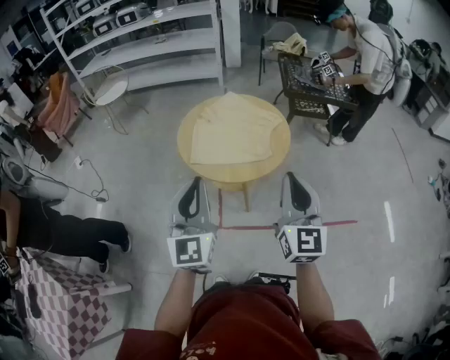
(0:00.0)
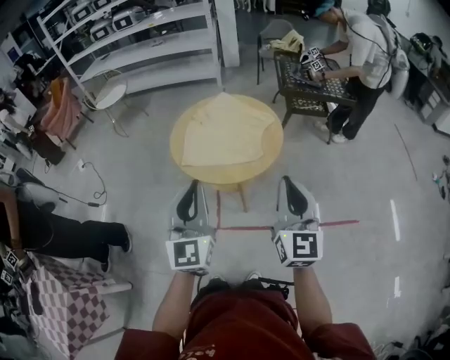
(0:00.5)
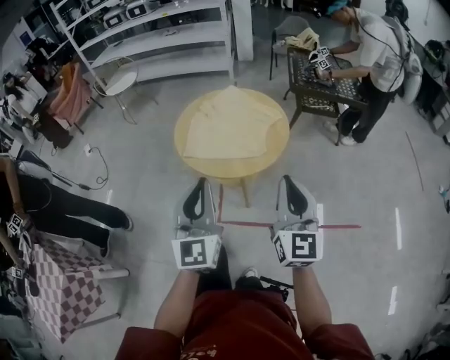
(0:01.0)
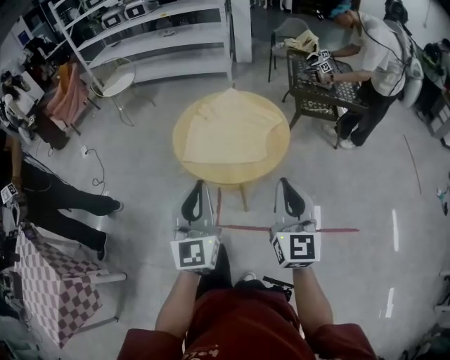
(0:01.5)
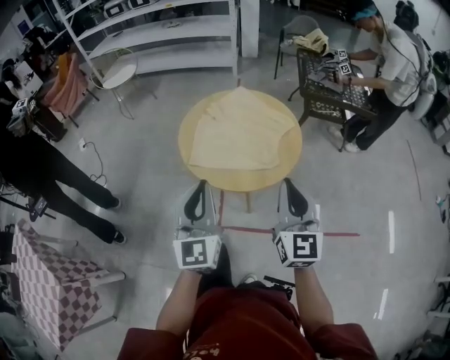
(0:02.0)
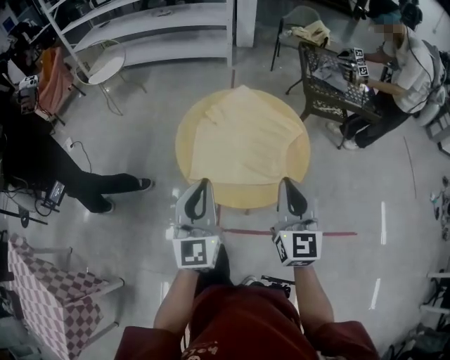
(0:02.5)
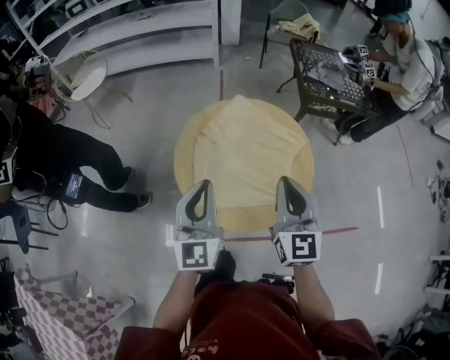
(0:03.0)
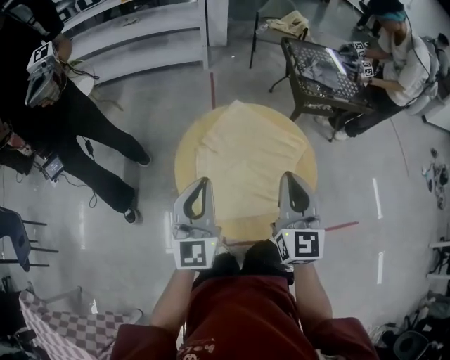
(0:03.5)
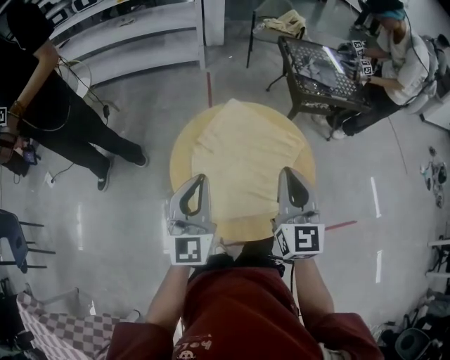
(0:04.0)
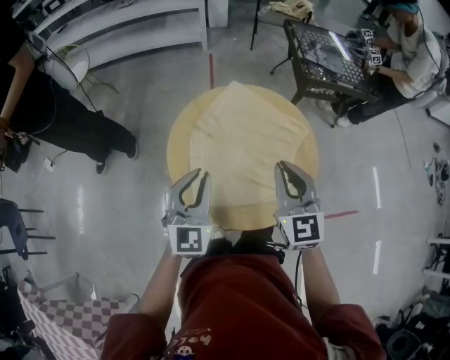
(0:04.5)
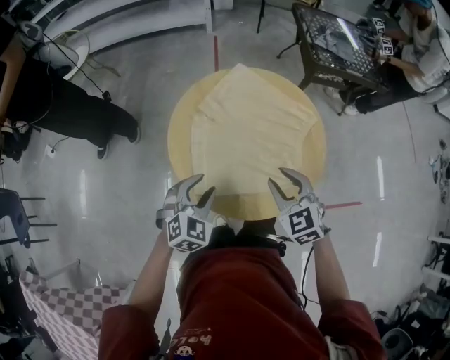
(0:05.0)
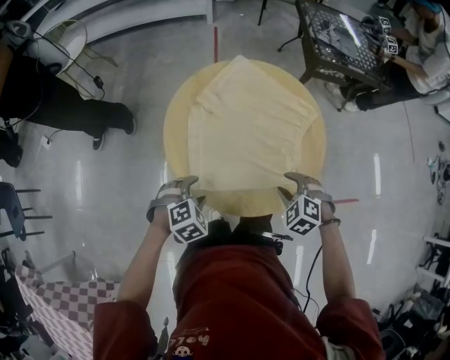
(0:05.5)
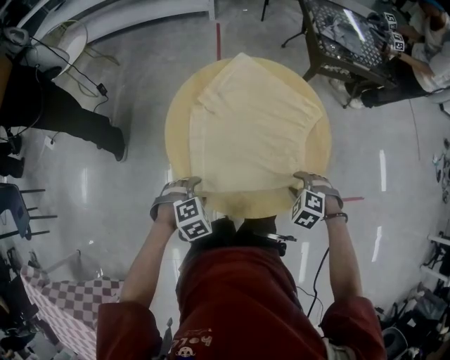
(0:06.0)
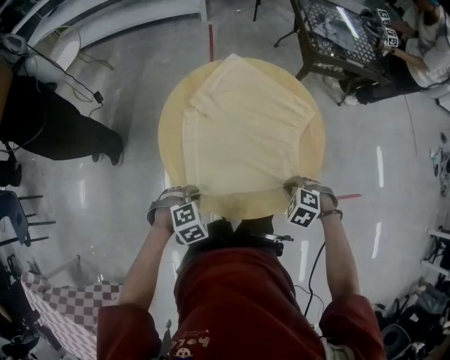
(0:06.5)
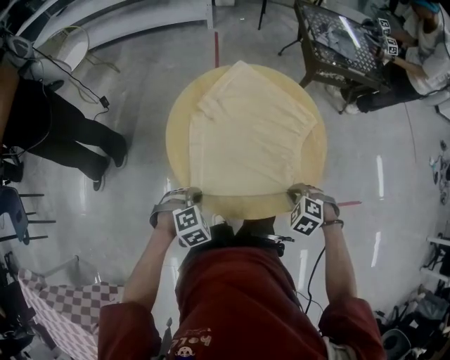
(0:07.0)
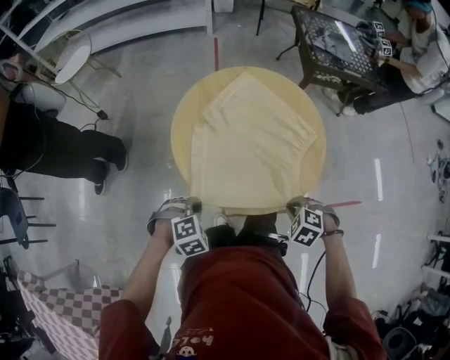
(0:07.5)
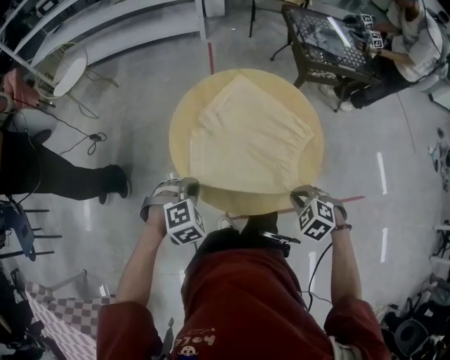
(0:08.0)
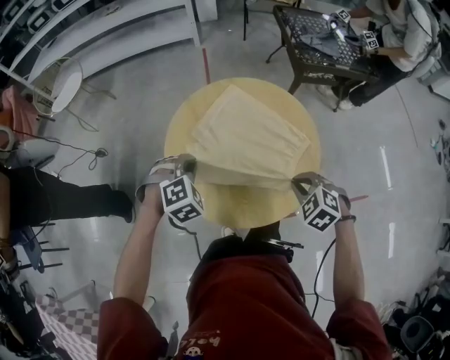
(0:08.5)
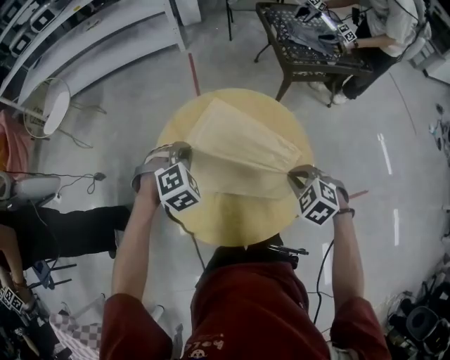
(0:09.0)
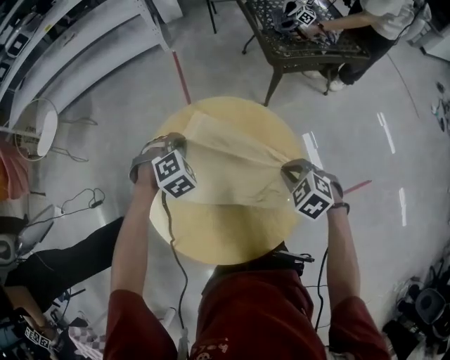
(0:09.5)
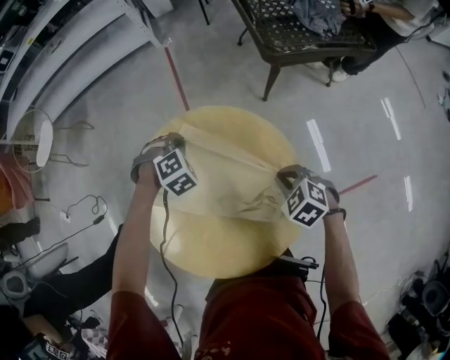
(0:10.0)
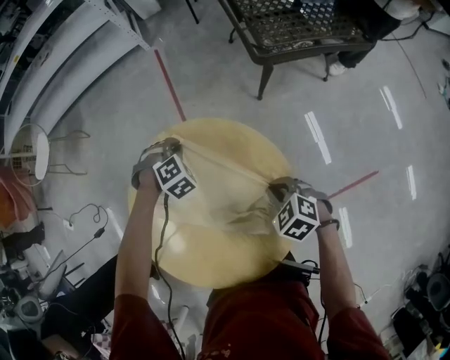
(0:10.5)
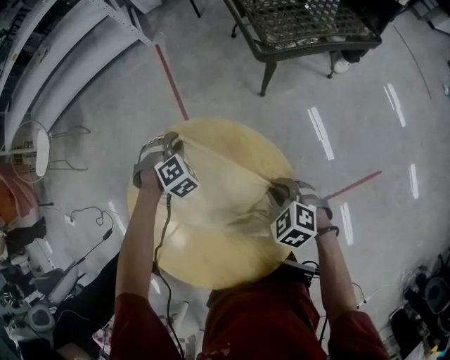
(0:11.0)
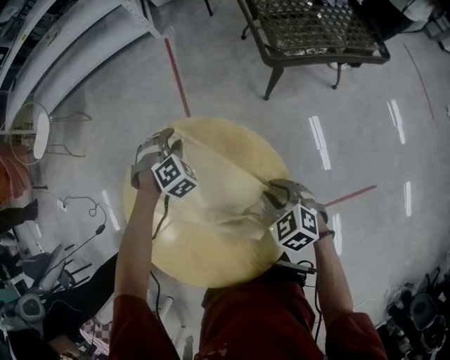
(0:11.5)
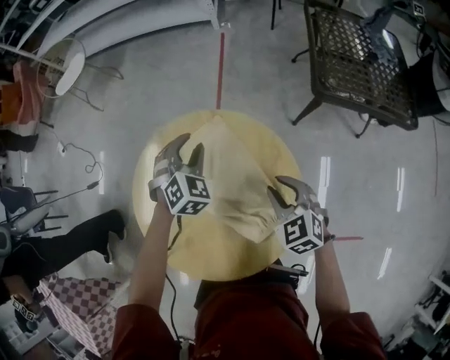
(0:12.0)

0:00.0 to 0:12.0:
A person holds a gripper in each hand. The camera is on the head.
0:00.0 to 0:02.0: Both grippers travel together forward, some 10 cm.
0:02.0 to 0:04.0: The left gripper moves forward, about 25 cm. Meanwhile the right gripper heads forward and to the left, covering about 25 cm.
0:04.0 to 0:06.0: The two grippers go approximately 30 cm downward. The right gripper angles its fingers downward, by roughly 70 degrees, and opens up. Meanwhile the left gripper angles its fingers downward, by some 80 degrees, and opens up.
0:06.0 to 0:08.0: Both grippers move upward, approximately 10 cm. The left gripper closes. The right gripper closes up.
0:08.0 to 0:10.0: The left gripper goes approximately 40 cm forward and to the right. The right gripper travels forward and to the right by roughly 30 cm.
0:10.0 to 0:12.0: The left gripper goes roughly 5 cm upward, changes its angle by approximately 50 degrees, and opens its fingers. Meanwhile the right gripper goes about 5 cm forward, rotates roughly 20 degrees, and opens up.

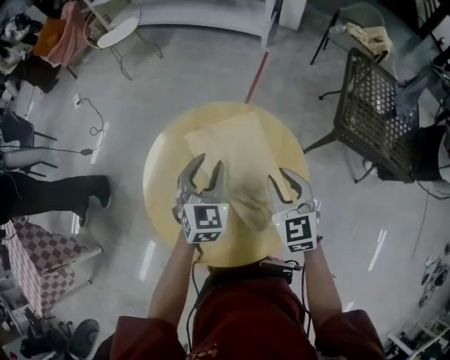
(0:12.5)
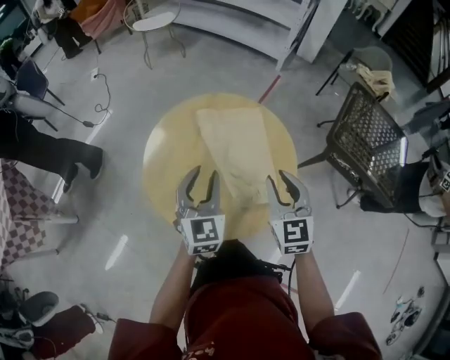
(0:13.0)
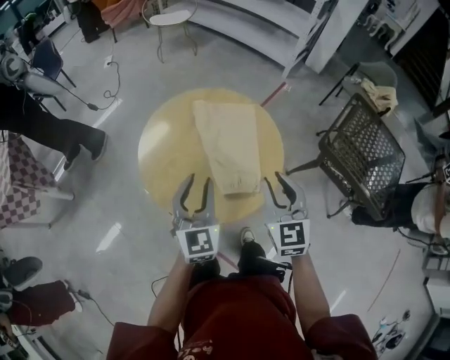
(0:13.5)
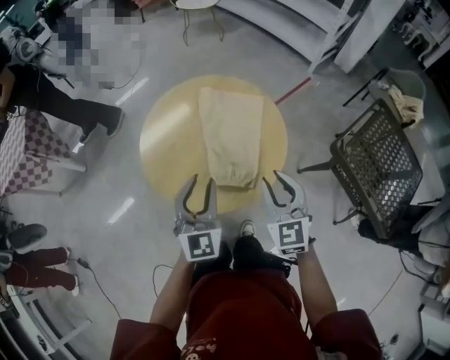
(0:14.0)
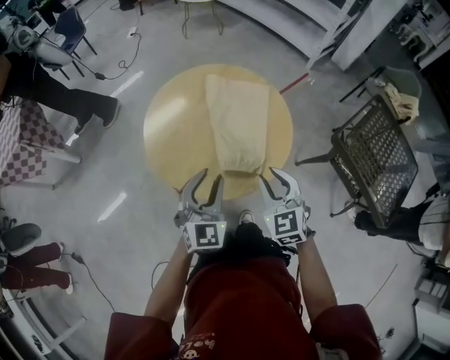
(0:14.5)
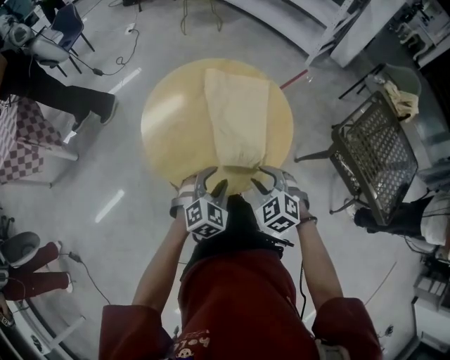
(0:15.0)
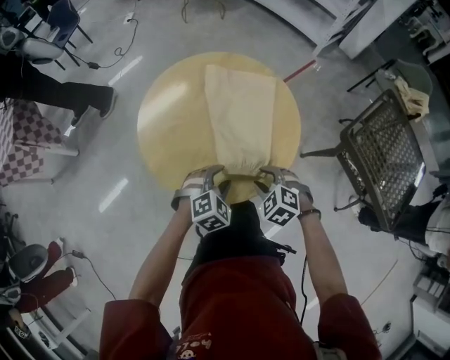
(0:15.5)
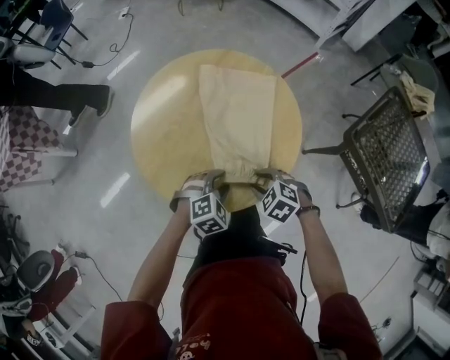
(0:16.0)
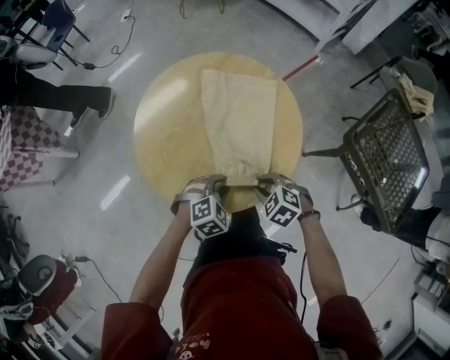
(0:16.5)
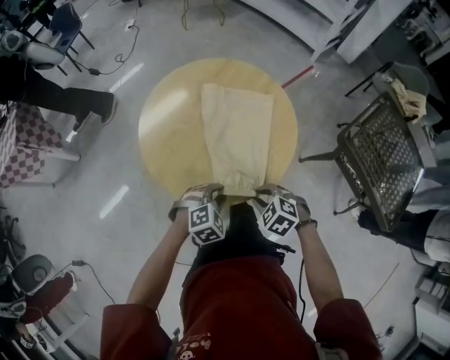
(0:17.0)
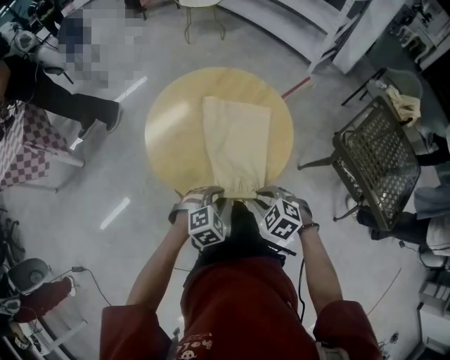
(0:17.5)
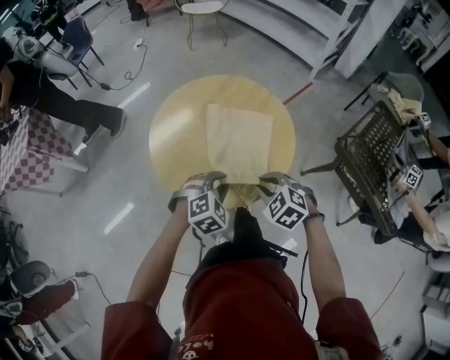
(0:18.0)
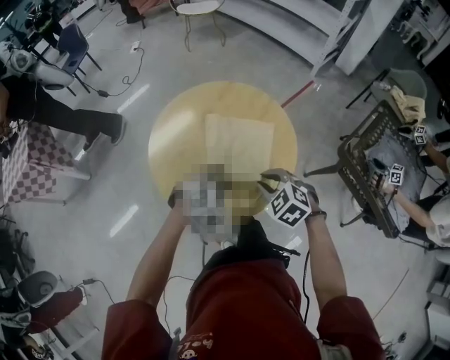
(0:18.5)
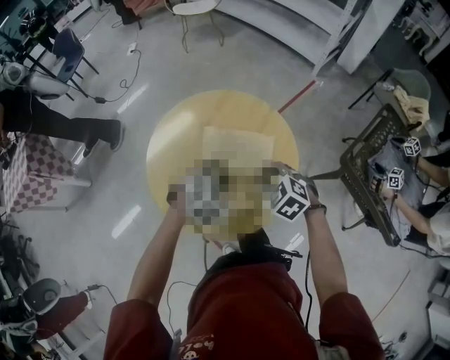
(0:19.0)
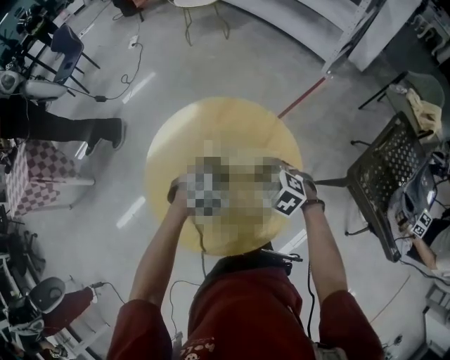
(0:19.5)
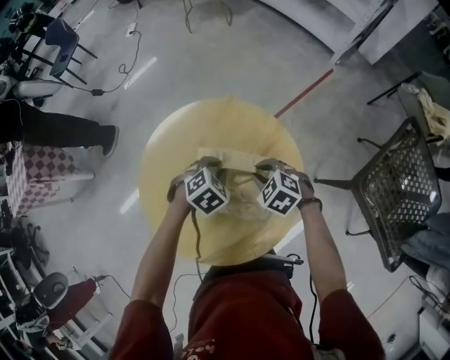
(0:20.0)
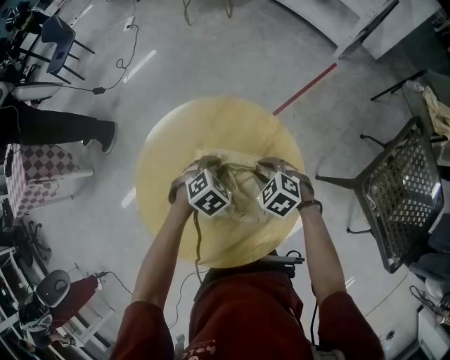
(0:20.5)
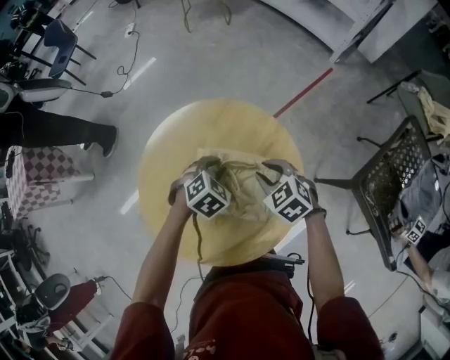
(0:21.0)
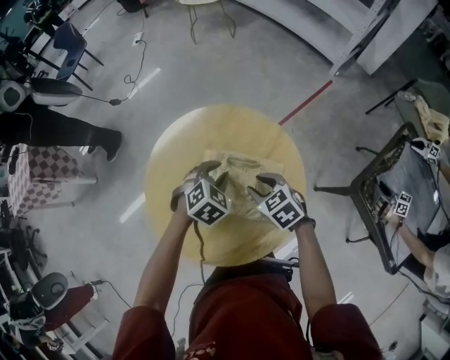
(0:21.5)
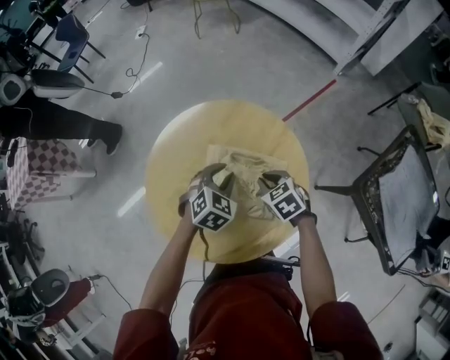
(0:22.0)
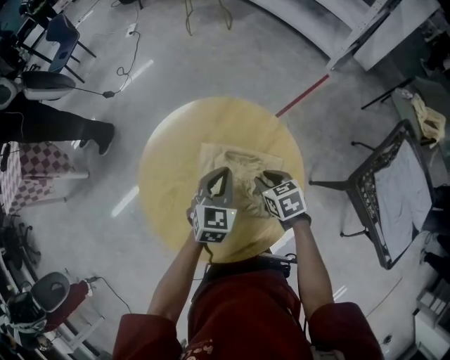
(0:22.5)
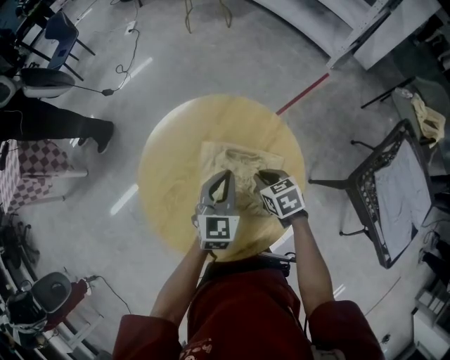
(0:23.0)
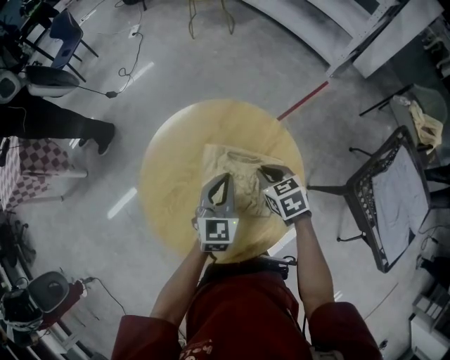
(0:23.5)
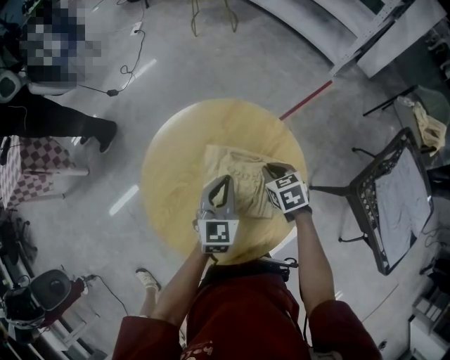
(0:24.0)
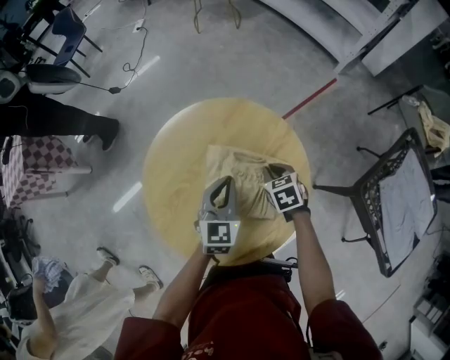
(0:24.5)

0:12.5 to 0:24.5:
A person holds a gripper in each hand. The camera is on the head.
0:12.5 to 0:14.5: The left gripper reaches about 10 cm upward, then returns, and swivels roughly 30 degrees; the right gripper moves roughly 10 cm upward and comes back, and swivels some 30 degrees.
0:14.5 to 0:16.5: The two grippers go some 15 cm downward. The left gripper tips its fingers downward by some 40 degrees. Meanwhile the right gripper points its fingers some 40 degrees further downward.
0:16.5 to 0:18.5: Both grippers travel together upward, approximately 10 cm. The right gripper moves roughly 10 cm backward and comes back.
0:18.5 to 0:20.5: The two grippers go roughly 25 cm forward and downward. The left gripper rotates approximately 20 degrees.
0:20.5 to 0:22.5: The right gripper swivels approximately 40 degrees, while the left gripper travels upward by roughly 10 cm, angles its fingers upward, by roughly 40 degrees, and closes.
0:22.5 to 0:24.5: The grippers move only a little.

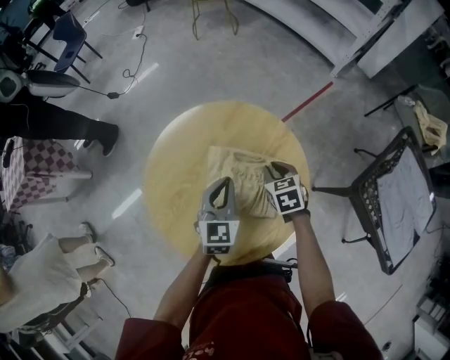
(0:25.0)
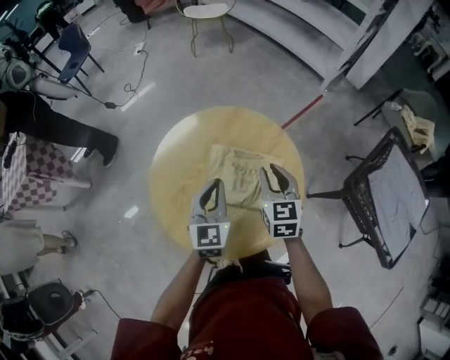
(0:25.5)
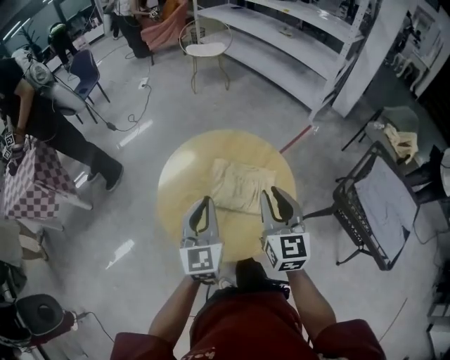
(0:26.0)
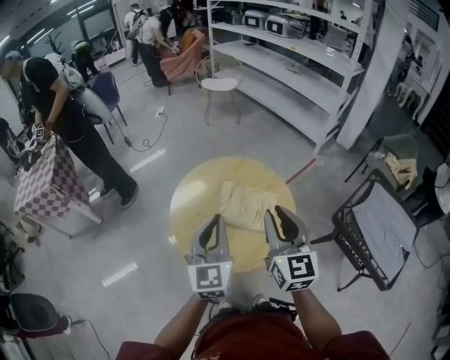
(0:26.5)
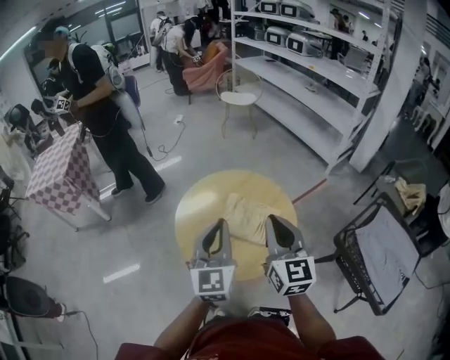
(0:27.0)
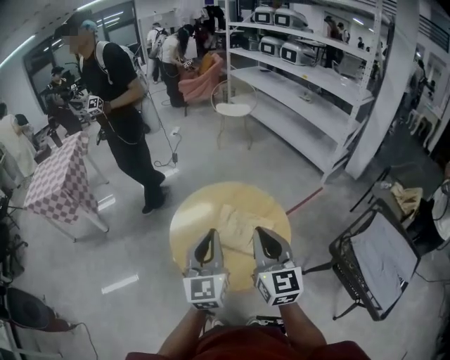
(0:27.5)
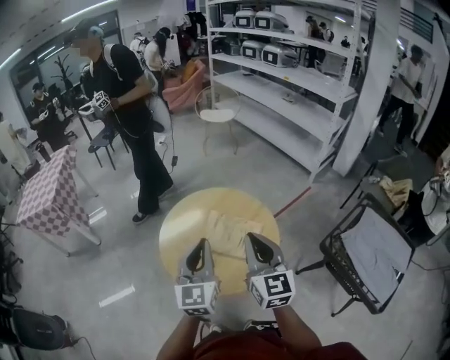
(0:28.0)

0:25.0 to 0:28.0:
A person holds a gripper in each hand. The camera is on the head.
0:25.0 to 0:26.5: The two grippers go approximately 35 cm upward and backward. The right gripper points its fingers roughly 50 degrees further upward. Meanwhile the left gripper swivels roughly 20 degrees.
0:26.5 to 0:28.0: The grippers move only a little.
